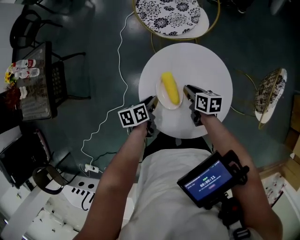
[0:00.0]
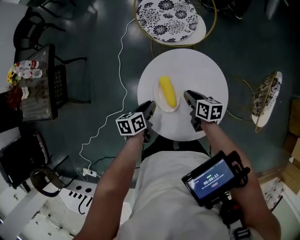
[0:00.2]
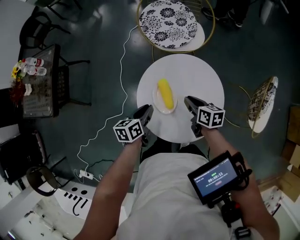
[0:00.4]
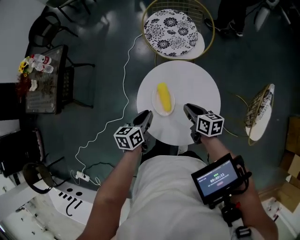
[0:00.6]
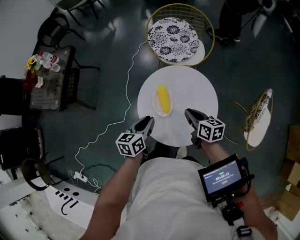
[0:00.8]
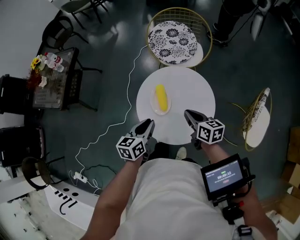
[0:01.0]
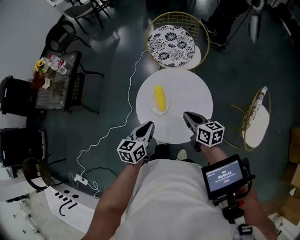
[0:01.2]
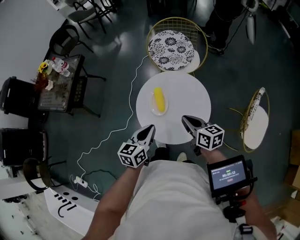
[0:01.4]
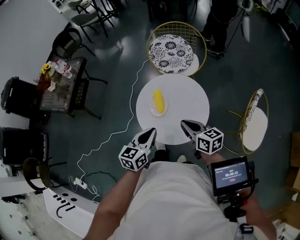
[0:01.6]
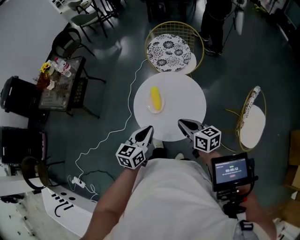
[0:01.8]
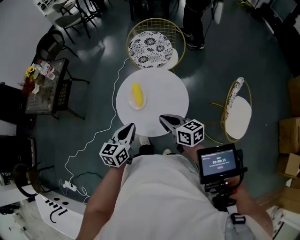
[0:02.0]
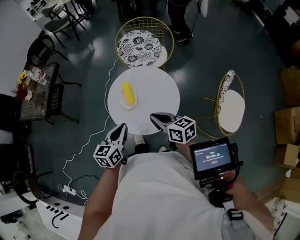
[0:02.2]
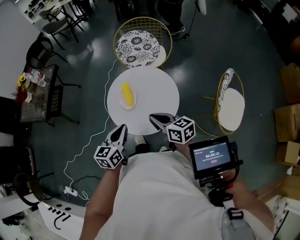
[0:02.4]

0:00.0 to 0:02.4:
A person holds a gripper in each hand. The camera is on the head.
0:00.0 to 0:01.2: The right gripper moves upward, about 20 cm, and turns by roughly 30 degrees.
0:01.2 to 0:02.4: The right gripper shifts by about 10 cm.

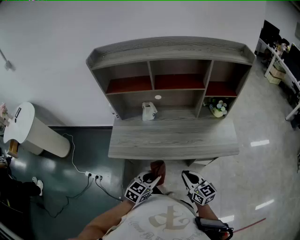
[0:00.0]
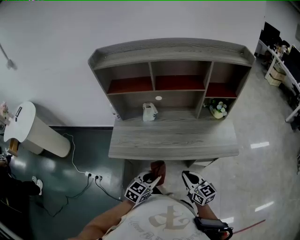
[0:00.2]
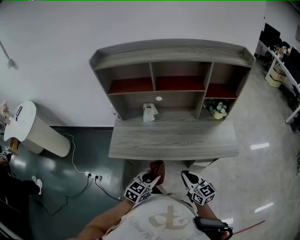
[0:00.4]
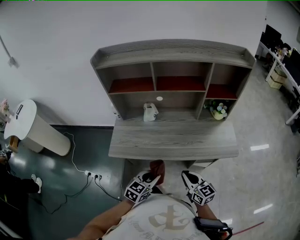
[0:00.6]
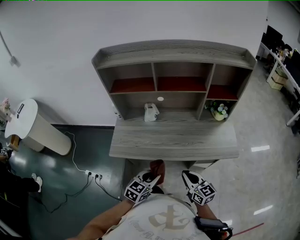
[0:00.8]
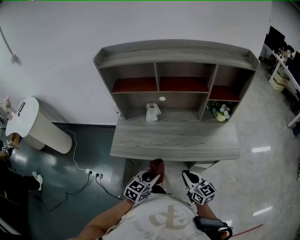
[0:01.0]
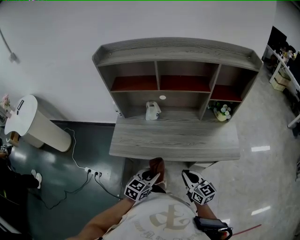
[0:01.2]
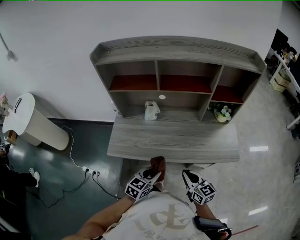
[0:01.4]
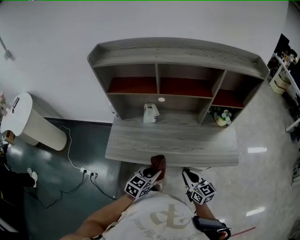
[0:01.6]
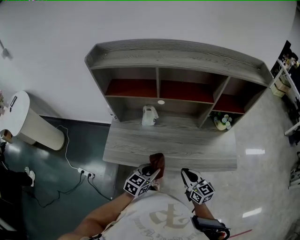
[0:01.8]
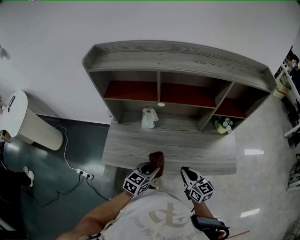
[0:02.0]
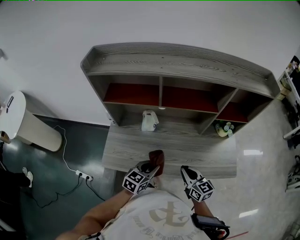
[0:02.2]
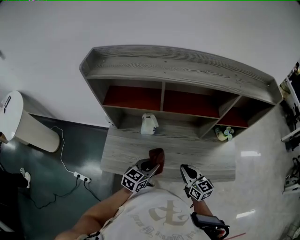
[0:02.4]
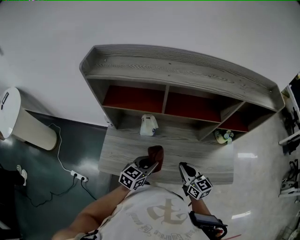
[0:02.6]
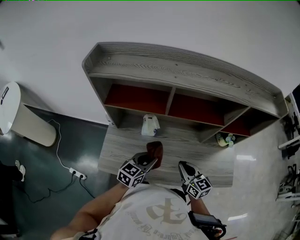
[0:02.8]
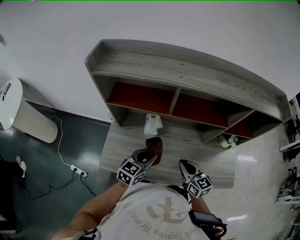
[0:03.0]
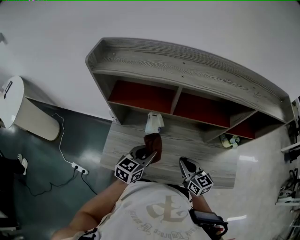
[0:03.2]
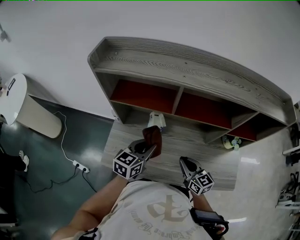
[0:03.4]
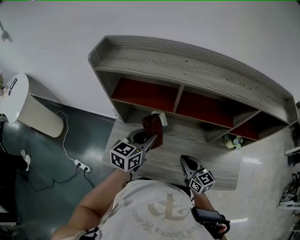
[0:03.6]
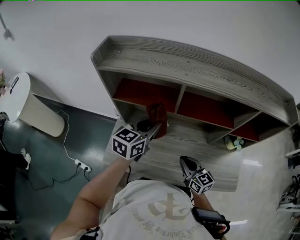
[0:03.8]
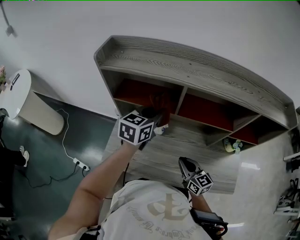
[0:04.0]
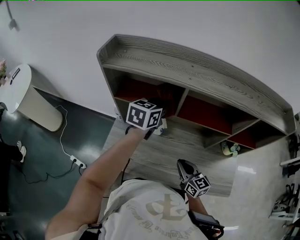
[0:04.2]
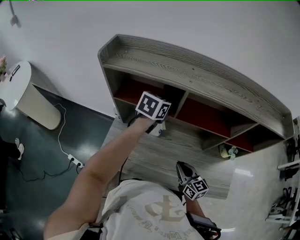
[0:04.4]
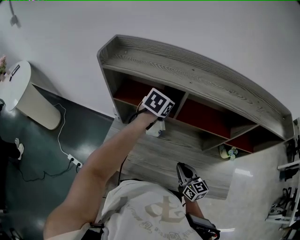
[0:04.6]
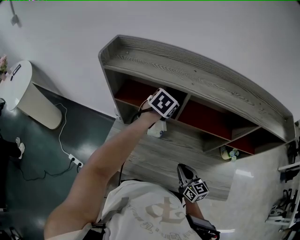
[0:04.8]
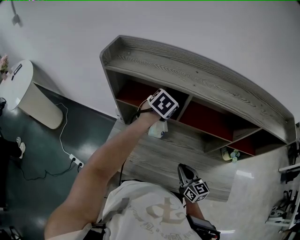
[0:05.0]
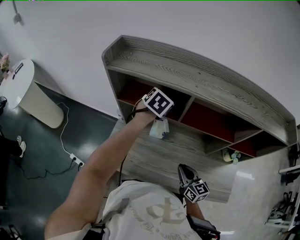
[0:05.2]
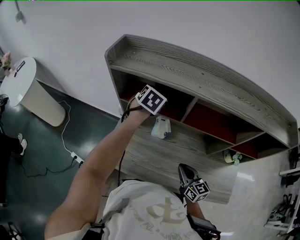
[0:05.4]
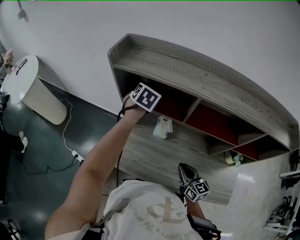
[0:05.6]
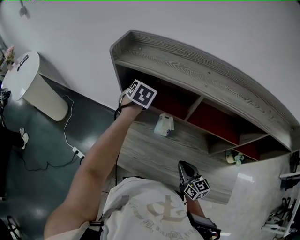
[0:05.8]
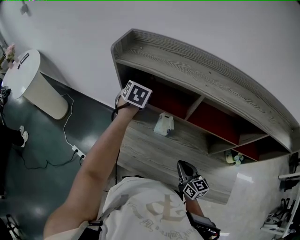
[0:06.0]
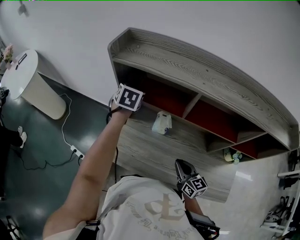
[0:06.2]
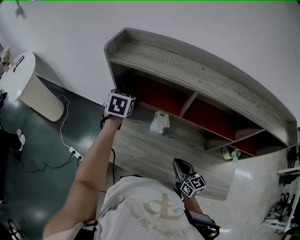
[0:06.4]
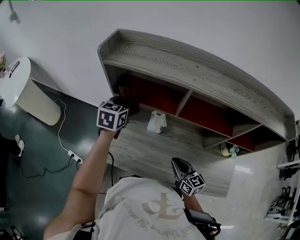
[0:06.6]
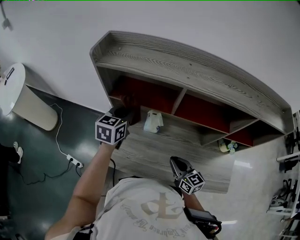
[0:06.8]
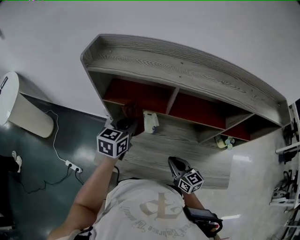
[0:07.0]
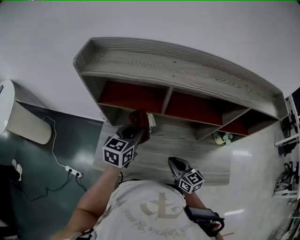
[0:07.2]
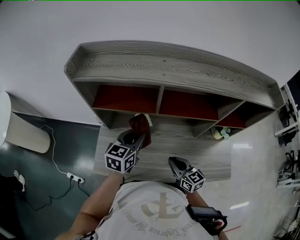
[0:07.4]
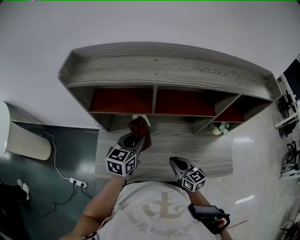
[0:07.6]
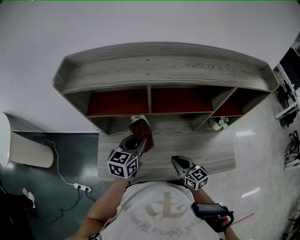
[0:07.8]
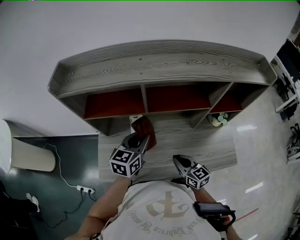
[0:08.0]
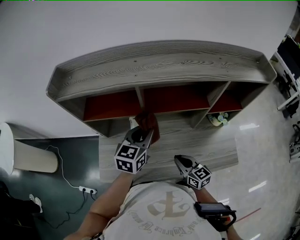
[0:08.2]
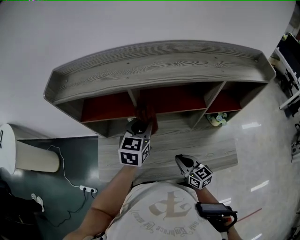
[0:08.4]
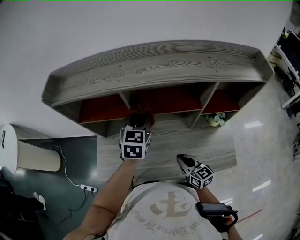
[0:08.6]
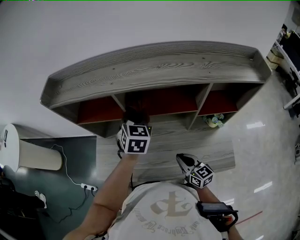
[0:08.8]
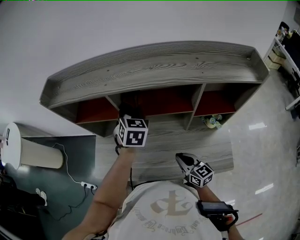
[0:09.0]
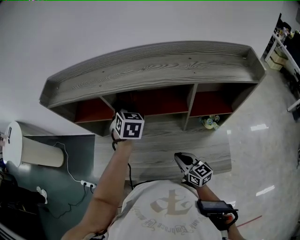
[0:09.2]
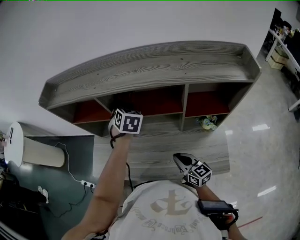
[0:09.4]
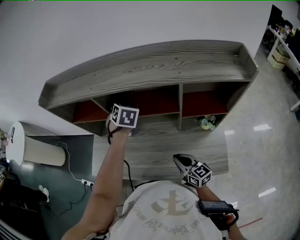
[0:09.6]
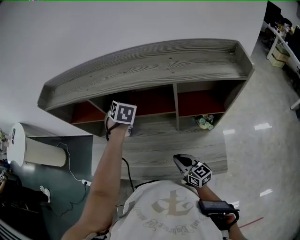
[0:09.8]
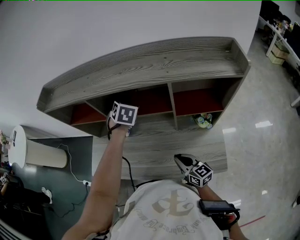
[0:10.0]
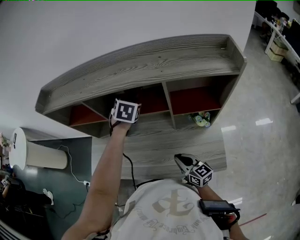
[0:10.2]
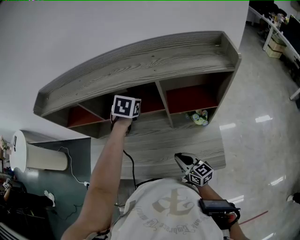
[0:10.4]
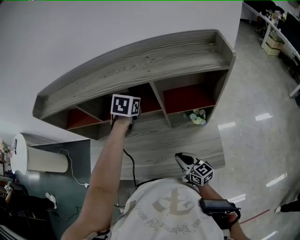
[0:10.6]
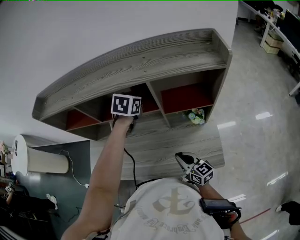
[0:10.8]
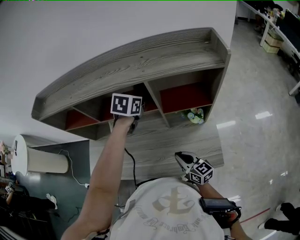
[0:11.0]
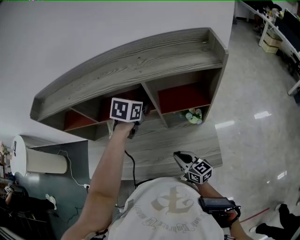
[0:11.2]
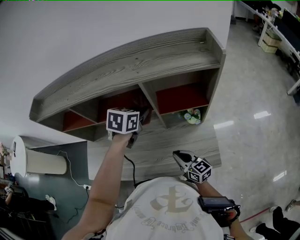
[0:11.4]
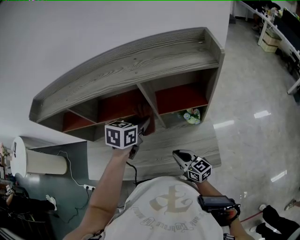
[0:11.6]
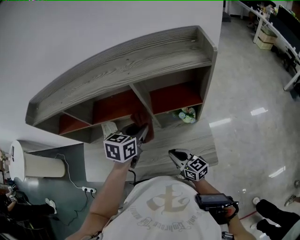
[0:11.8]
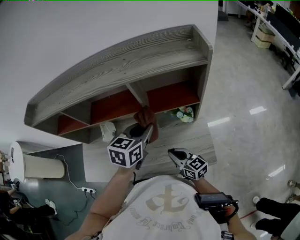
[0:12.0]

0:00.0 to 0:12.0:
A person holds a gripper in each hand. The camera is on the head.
0:00.0 to 0:01.6: The grippers both shift forward by some 5 cm.
0:01.6 to 0:03.0: Both grippers travel together forward, roughly 20 cm.
0:03.0 to 0:04.4: The left gripper goes about 25 cm forward and upward.
0:04.4 to 0:06.0: The left gripper shifts about 20 cm to the left, and swivels roughly 30 degrees.
0:06.0 to 0:07.6: The left gripper travels backward and to the right by approximately 25 cm, and changes its angle by approximately 40 degrees.
0:07.6 to 0:09.0: The right gripper travels to the right by about 15 cm. Meanwhile the left gripper shifts roughly 20 cm to the right, forward and upward, and changes its angle by some 40 degrees.
0:09.0 to 0:10.4: The left gripper moves to the right, some 15 cm. The right gripper heads to the right and backward, covering about 10 cm.
0:10.4 to 0:12.0: The left gripper travels backward and to the right by some 20 cm, and rotates about 30 degrees.

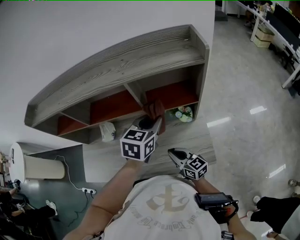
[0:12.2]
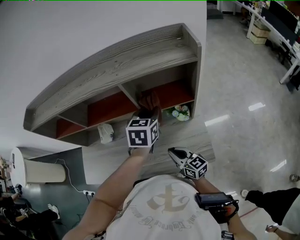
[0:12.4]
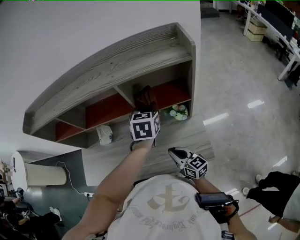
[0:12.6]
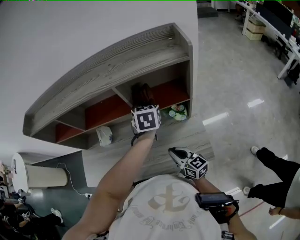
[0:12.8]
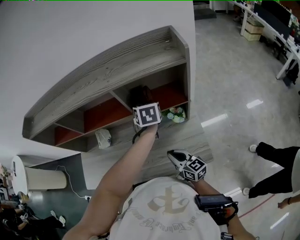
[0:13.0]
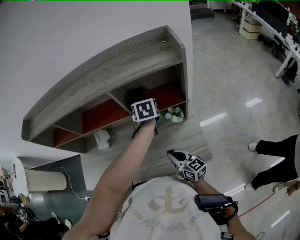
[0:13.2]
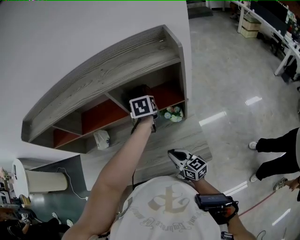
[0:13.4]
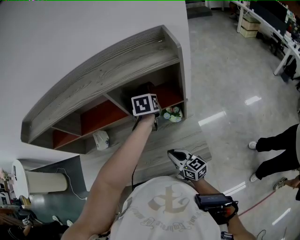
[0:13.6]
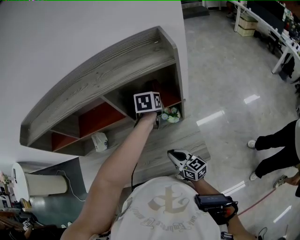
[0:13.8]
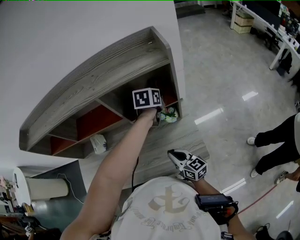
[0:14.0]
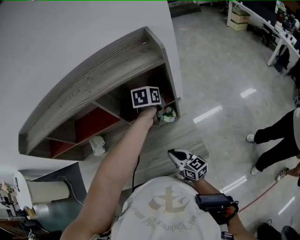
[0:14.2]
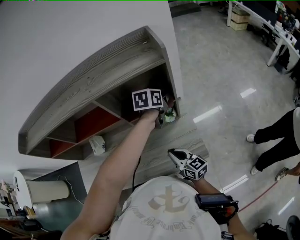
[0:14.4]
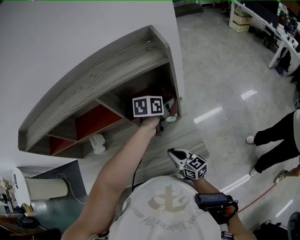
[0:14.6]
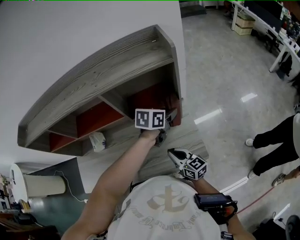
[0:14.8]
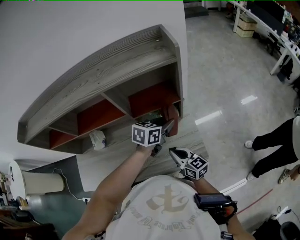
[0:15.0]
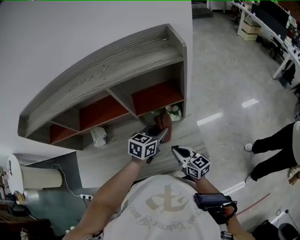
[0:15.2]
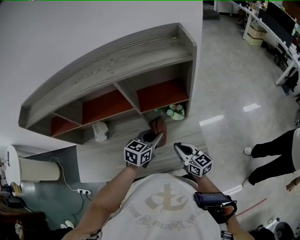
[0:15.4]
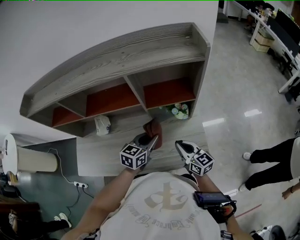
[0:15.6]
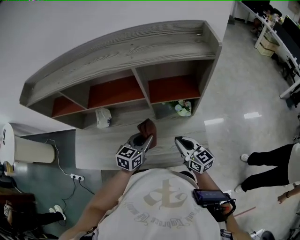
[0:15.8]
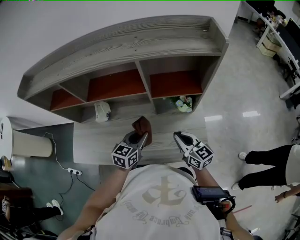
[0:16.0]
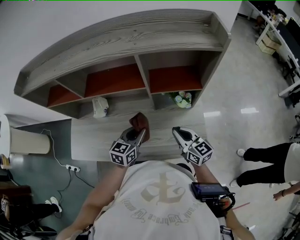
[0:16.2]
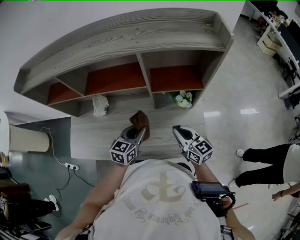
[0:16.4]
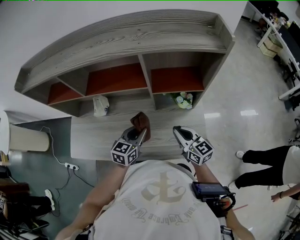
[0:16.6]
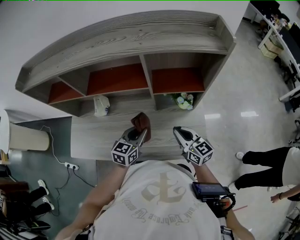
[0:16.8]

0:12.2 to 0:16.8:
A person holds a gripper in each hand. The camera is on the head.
0:12.2 to 0:13.8: The left gripper travels to the right, forward and downward by approximately 20 cm. Meanwhile the right gripper moves roughly 5 cm.
0:13.8 to 0:15.2: The left gripper is displaced backward by some 15 cm, and rotates approximately 30 degrees.
0:15.2 to 0:16.8: The left gripper goes some 15 cm to the left, and swivels about 20 degrees; the right gripper ends up roughly 5 cm from where it was.

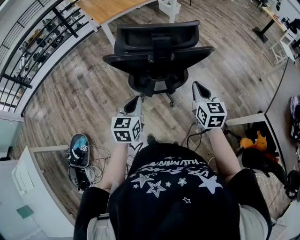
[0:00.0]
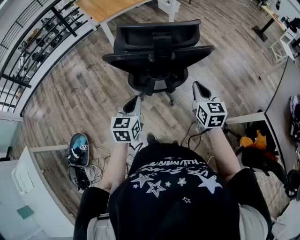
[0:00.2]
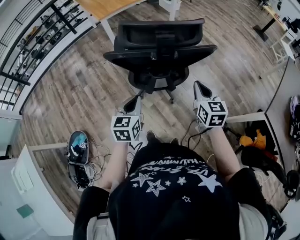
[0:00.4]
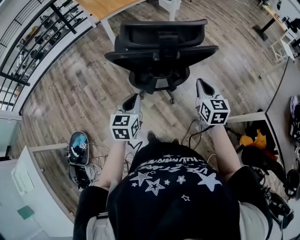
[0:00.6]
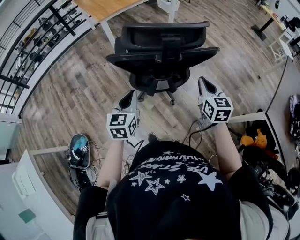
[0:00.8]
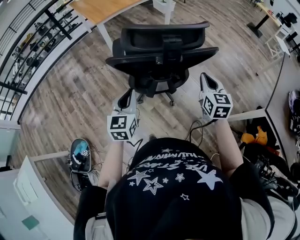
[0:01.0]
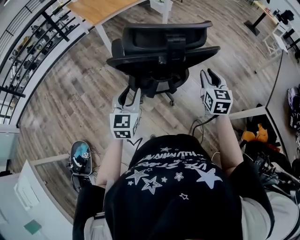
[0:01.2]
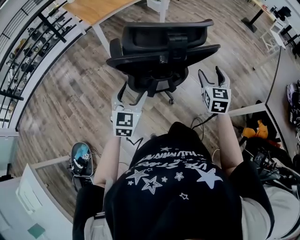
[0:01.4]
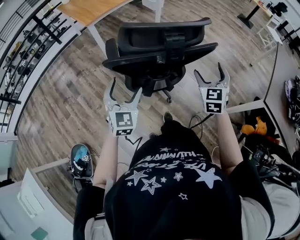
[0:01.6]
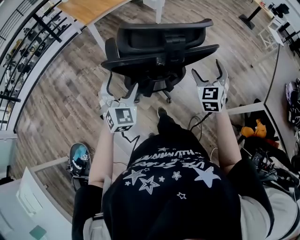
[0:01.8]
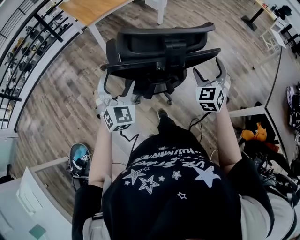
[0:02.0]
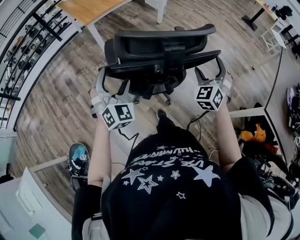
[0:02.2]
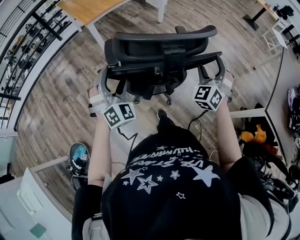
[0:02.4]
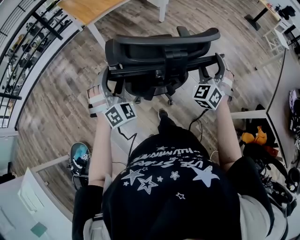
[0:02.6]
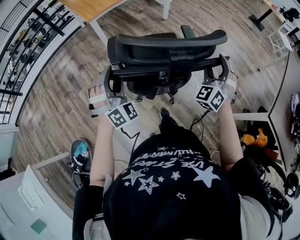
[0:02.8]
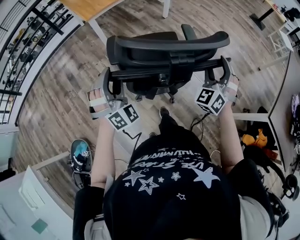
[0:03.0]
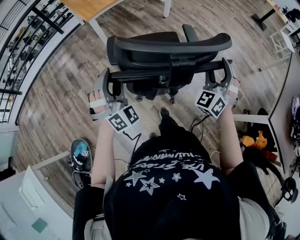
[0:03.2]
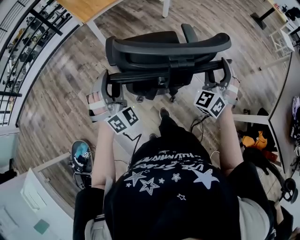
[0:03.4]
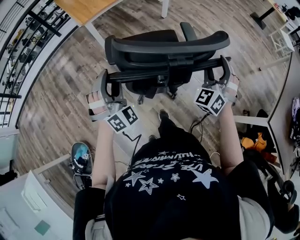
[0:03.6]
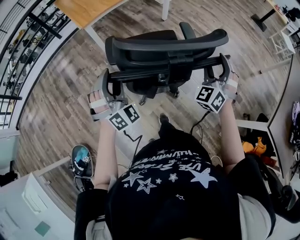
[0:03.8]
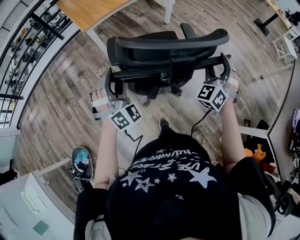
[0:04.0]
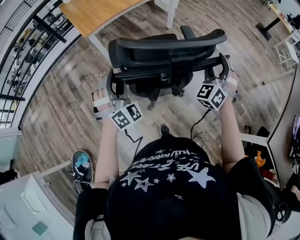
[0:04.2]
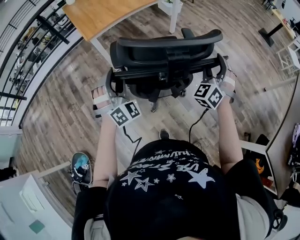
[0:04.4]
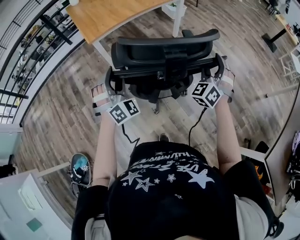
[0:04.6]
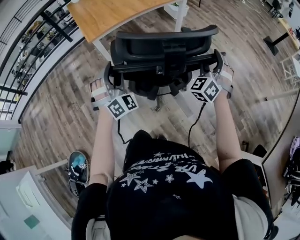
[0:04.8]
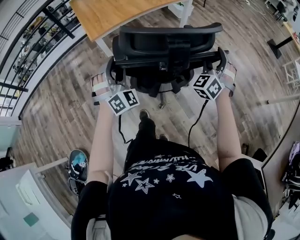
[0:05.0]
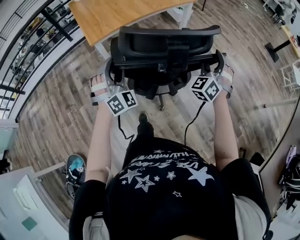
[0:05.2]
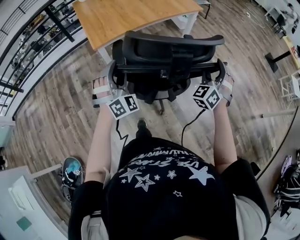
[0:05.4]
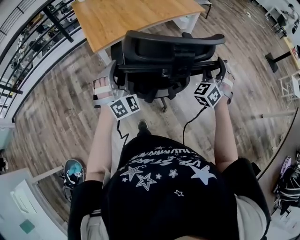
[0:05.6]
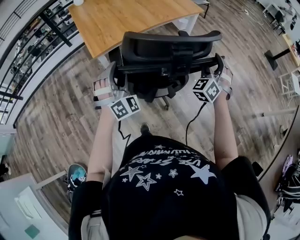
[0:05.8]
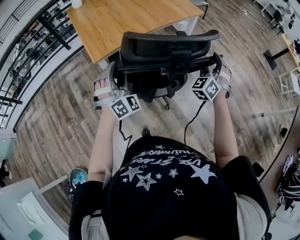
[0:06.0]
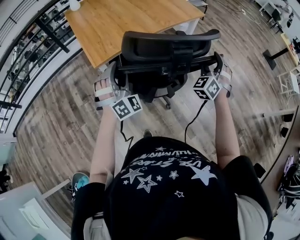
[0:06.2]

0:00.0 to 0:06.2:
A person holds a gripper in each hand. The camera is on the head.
0:00.0 to 0:01.6: The left gripper heads forward and to the left, covering approximately 10 cm, turns by about 30 degrees, and opens its fingers. Meanwhile the right gripper travels forward by roughly 5 cm, rotates roughly 30 degrees, and opens.
0:01.6 to 0:03.2: The grippers both shift forward by about 10 cm. The left gripper twists roughly 40 degrees clockwise, seen from behind, and closes up. Meanwhile the right gripper turns by approximately 30 degrees.
0:03.2 to 0:04.6: Both grippers move forward, some 25 cm.
0:04.6 to 0:06.2: Both grippers move forward and to the left, approximately 25 cm.
